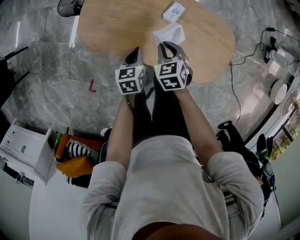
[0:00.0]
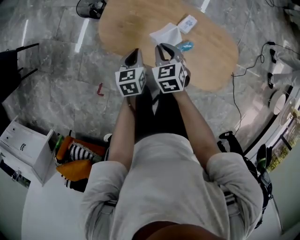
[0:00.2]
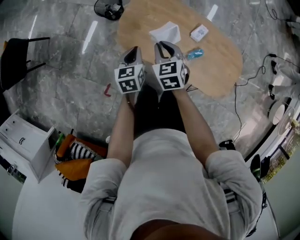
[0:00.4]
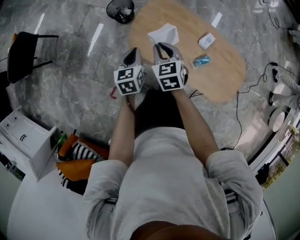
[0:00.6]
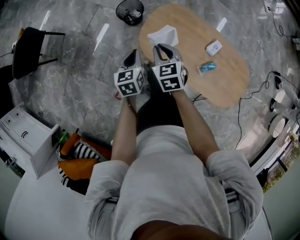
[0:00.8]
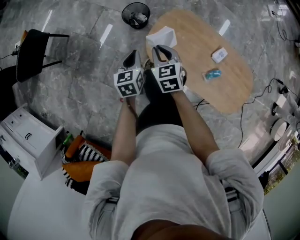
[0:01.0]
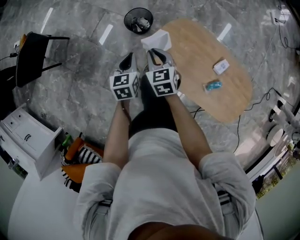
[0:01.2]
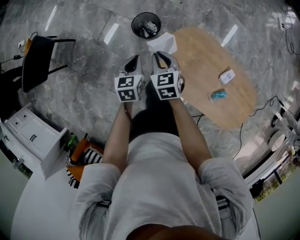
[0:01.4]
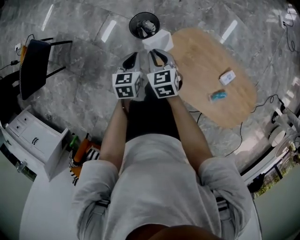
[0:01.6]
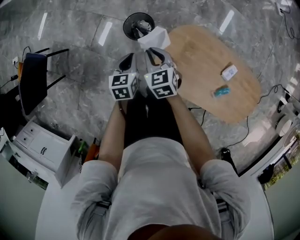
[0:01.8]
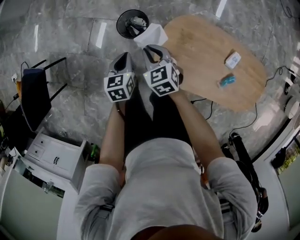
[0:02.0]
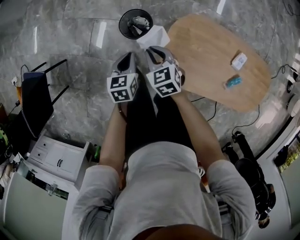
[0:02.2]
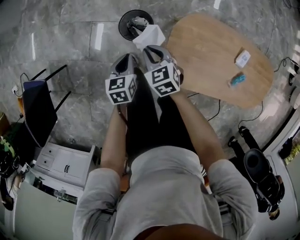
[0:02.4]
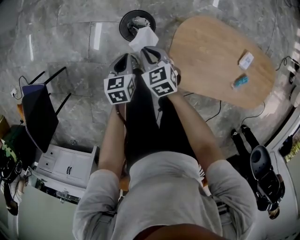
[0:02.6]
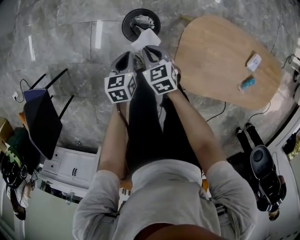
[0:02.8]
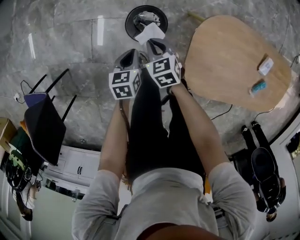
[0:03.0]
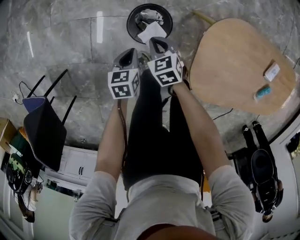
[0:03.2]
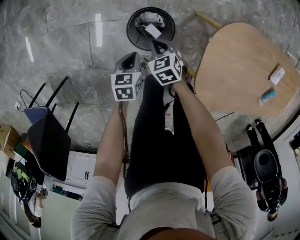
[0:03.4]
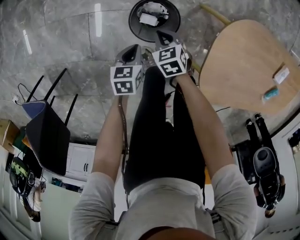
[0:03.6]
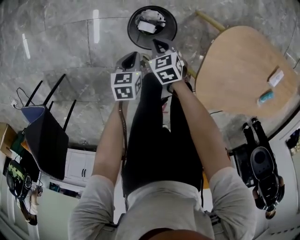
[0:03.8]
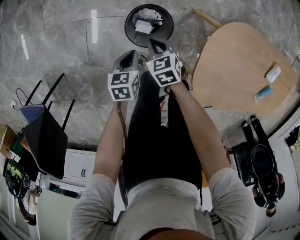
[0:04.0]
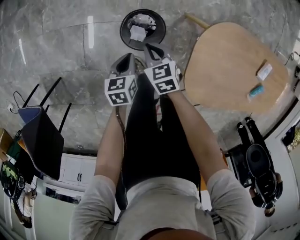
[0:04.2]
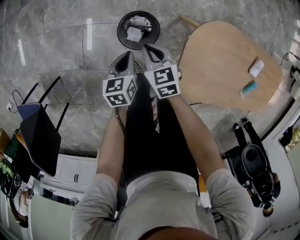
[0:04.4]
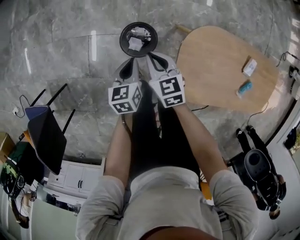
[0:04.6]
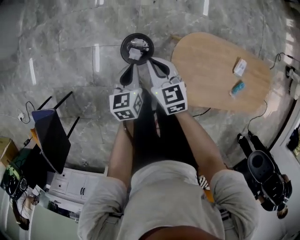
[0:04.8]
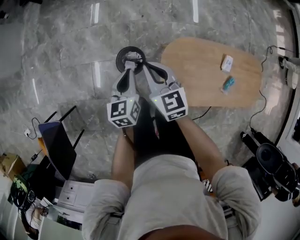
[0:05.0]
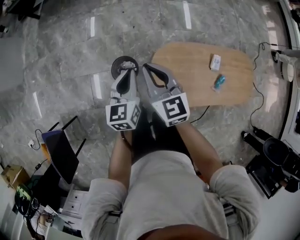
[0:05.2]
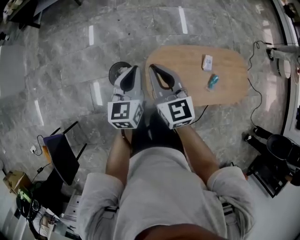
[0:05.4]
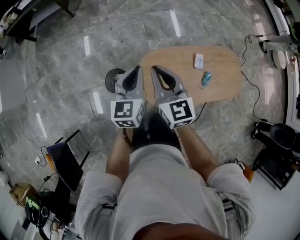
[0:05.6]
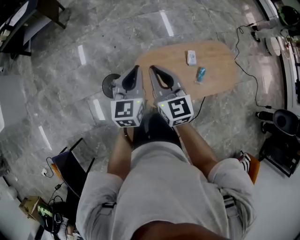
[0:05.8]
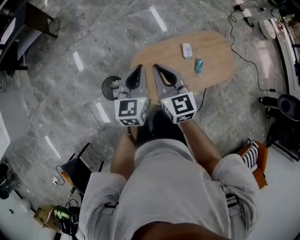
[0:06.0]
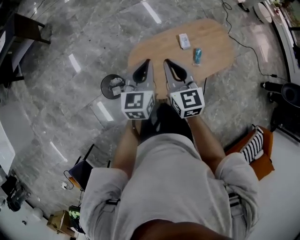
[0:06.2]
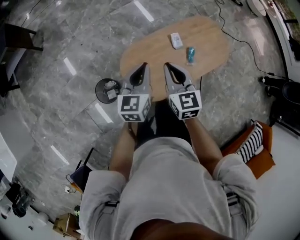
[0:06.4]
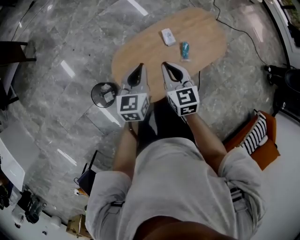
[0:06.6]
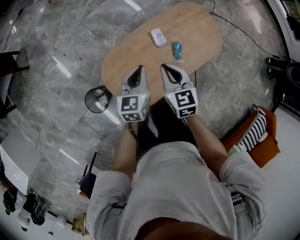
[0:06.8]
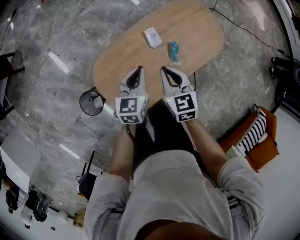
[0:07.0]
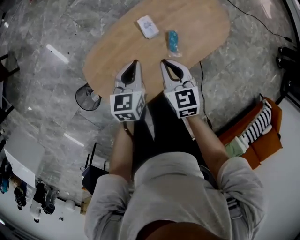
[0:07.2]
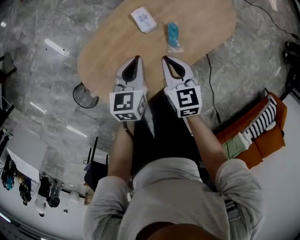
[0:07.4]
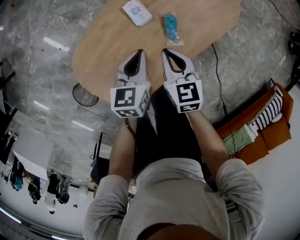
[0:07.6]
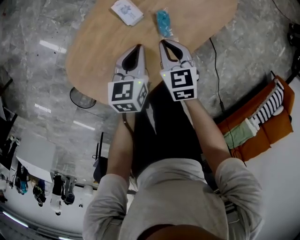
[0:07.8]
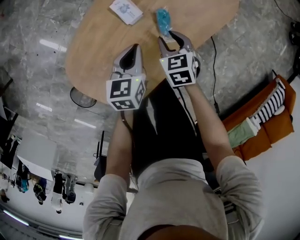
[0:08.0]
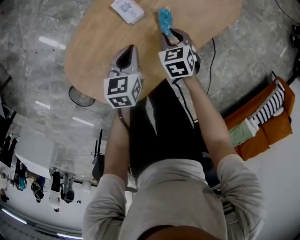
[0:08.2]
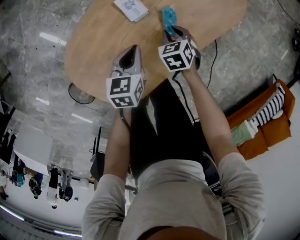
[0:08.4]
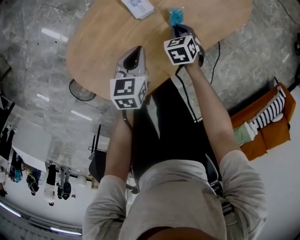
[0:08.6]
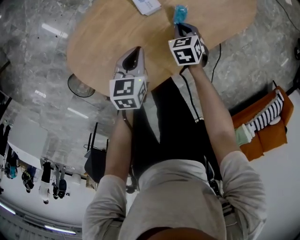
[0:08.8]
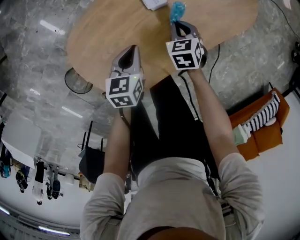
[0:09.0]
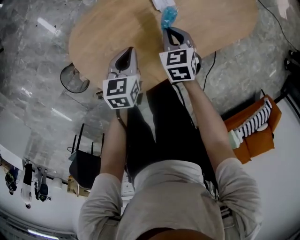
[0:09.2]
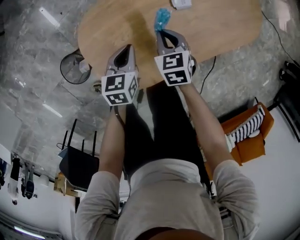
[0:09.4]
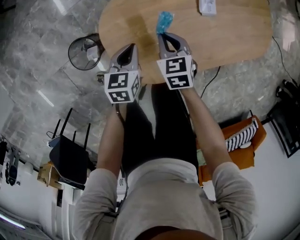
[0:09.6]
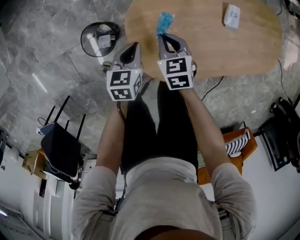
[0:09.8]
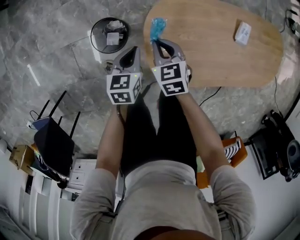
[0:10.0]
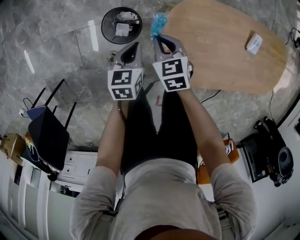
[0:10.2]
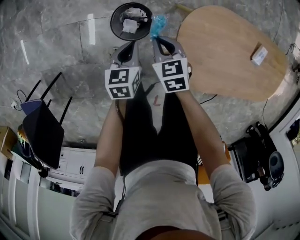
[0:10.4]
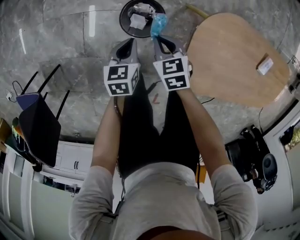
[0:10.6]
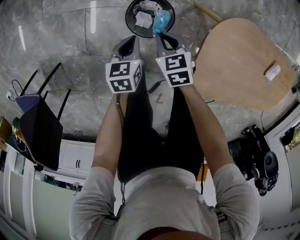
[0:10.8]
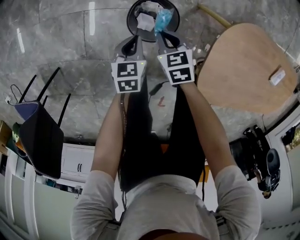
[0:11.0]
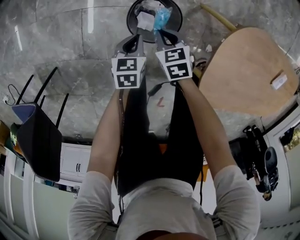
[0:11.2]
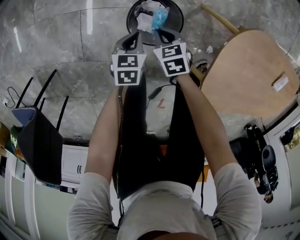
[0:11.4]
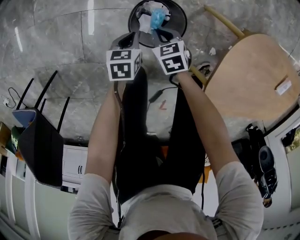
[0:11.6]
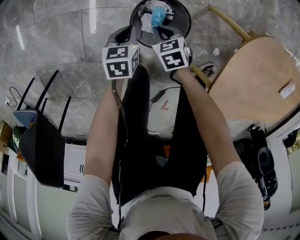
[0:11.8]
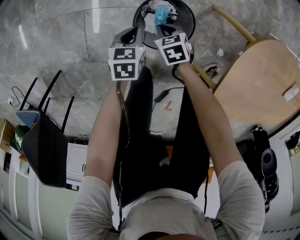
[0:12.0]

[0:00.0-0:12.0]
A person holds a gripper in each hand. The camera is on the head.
0:00.0 to 0:01.6: Both grippers are carried to the left and forward, about 50 cm.
0:01.6 to 0:03.0: Both grippers move downward and forward, roughly 30 cm. The left gripper rotates approximately 20 degrees.
0:03.0 to 0:04.4: The left gripper moves about 10 cm downward and comes back. Meanwhile the right gripper travels downward and back again, about 10 cm each way.
0:04.4 to 0:06.0: The grippers both shift upward by some 50 cm. The right gripper points its fingers some 30 degrees further upward. Meanwhile the left gripper points its fingers about 30 degrees further upward.
0:06.0 to 0:07.6: The left gripper changes place by roughly 50 cm, and swivels some 40 degrees. Meanwhile the right gripper goes about 35 cm downward, and changes its angle by some 40 degrees.
0:07.6 to 0:09.0: The right gripper is displaced downward by roughly 15 cm, turns by about 30 degrees, and opens, then closes again. The left gripper shifts roughly 10 cm downward, backward and to the left.
0:09.0 to 0:10.4: Both grippers are carried approximately 60 cm. The left gripper changes its angle by about 40 degrees, while the right gripper turns by some 50 degrees.
0:10.4 to 0:12.0: The right gripper moves downward, about 30 cm. The left gripper heads downward and to the left, covering about 25 cm.

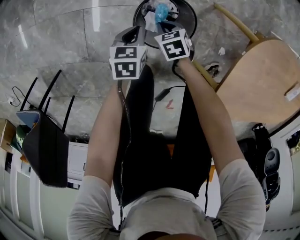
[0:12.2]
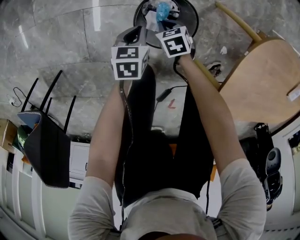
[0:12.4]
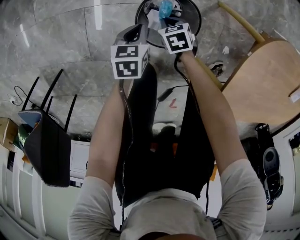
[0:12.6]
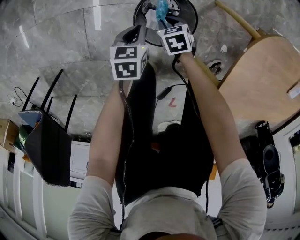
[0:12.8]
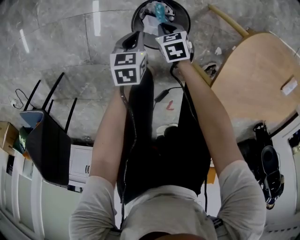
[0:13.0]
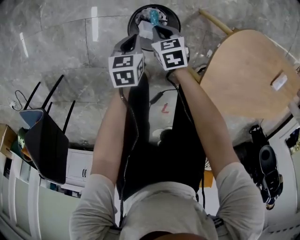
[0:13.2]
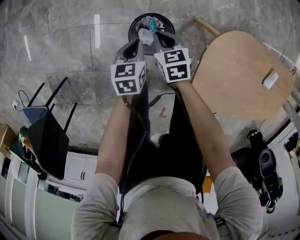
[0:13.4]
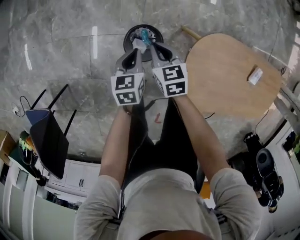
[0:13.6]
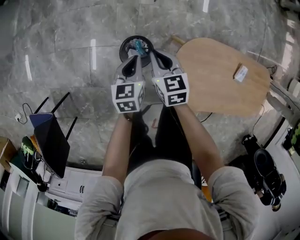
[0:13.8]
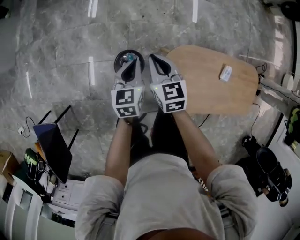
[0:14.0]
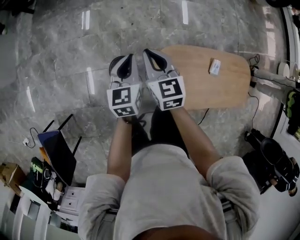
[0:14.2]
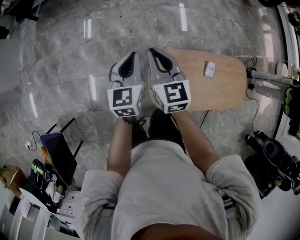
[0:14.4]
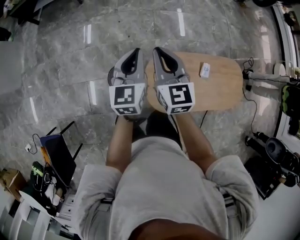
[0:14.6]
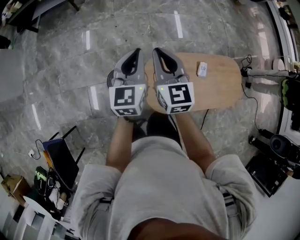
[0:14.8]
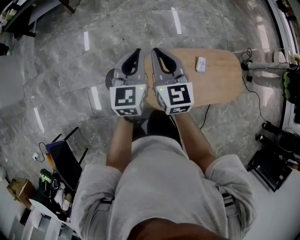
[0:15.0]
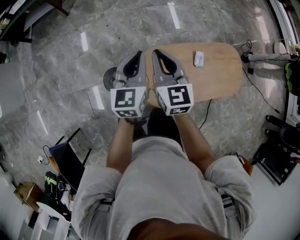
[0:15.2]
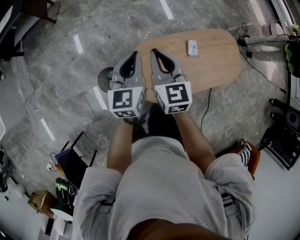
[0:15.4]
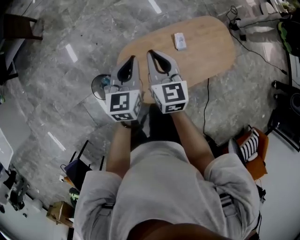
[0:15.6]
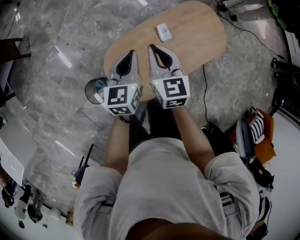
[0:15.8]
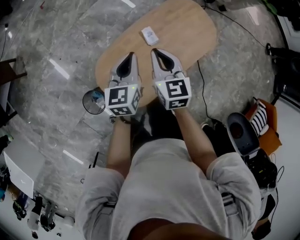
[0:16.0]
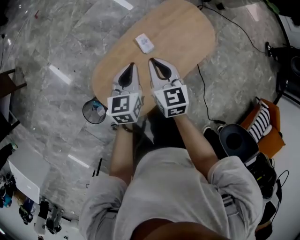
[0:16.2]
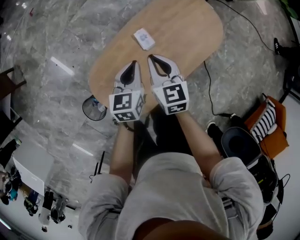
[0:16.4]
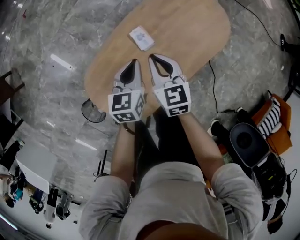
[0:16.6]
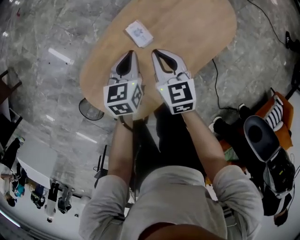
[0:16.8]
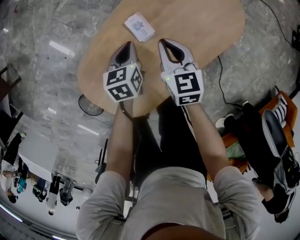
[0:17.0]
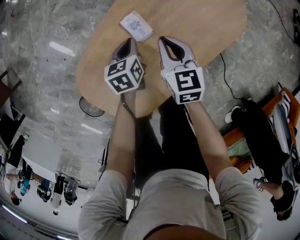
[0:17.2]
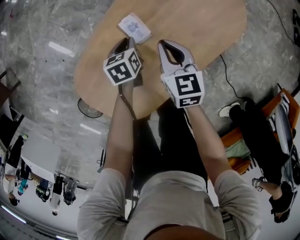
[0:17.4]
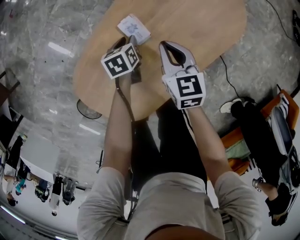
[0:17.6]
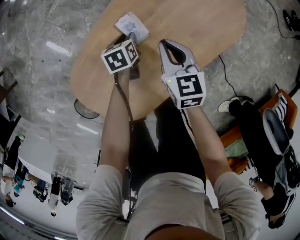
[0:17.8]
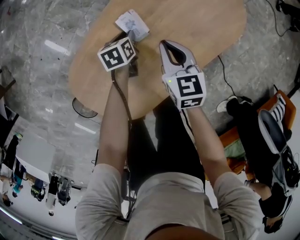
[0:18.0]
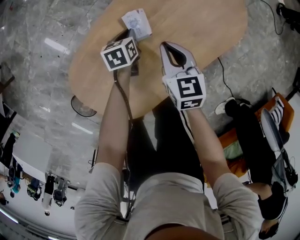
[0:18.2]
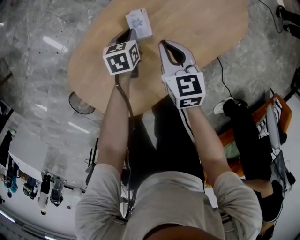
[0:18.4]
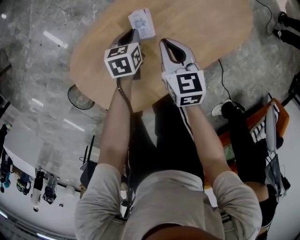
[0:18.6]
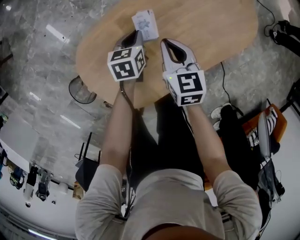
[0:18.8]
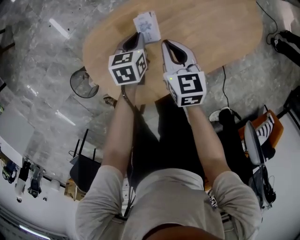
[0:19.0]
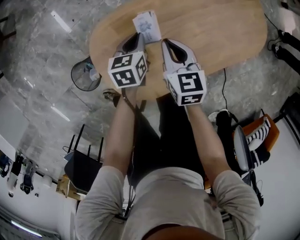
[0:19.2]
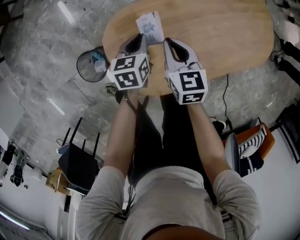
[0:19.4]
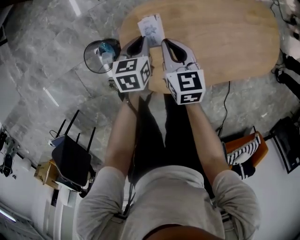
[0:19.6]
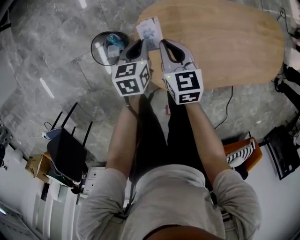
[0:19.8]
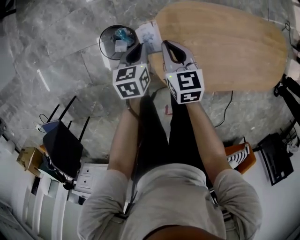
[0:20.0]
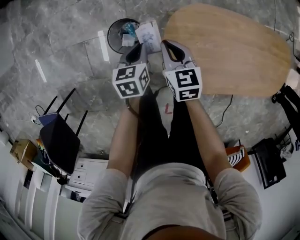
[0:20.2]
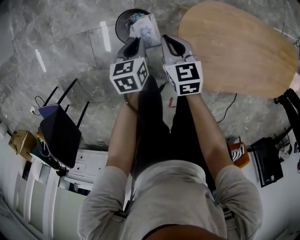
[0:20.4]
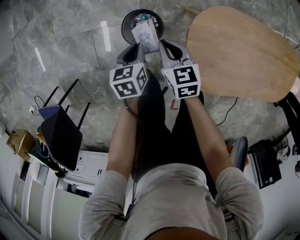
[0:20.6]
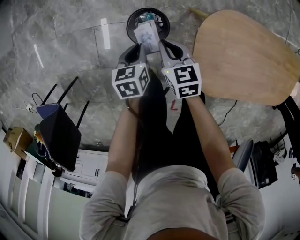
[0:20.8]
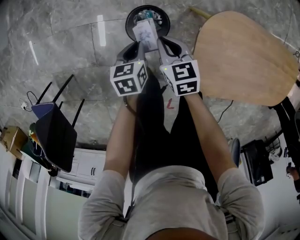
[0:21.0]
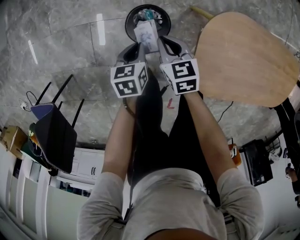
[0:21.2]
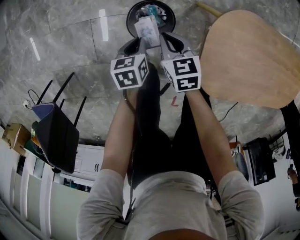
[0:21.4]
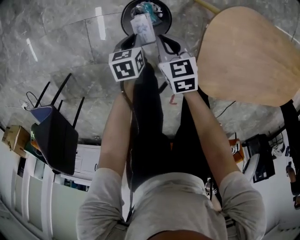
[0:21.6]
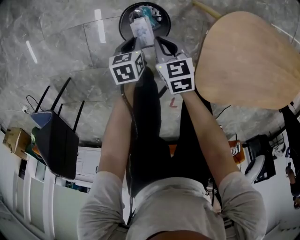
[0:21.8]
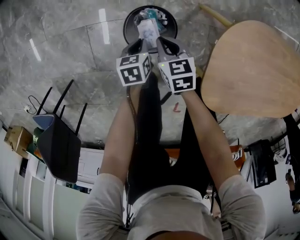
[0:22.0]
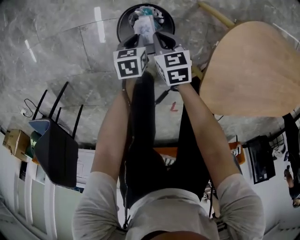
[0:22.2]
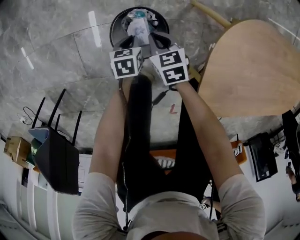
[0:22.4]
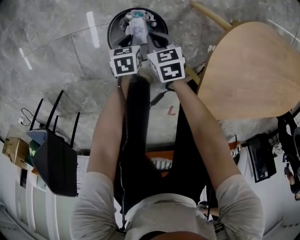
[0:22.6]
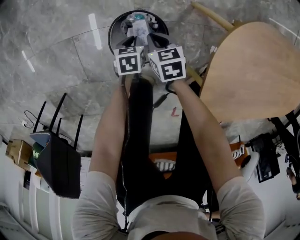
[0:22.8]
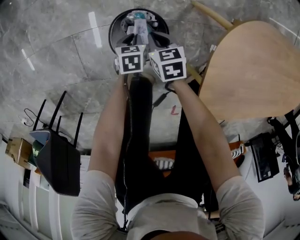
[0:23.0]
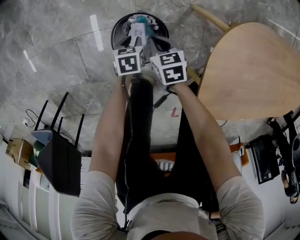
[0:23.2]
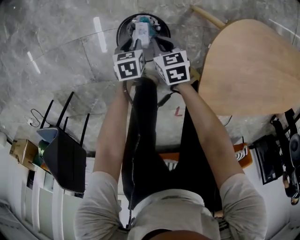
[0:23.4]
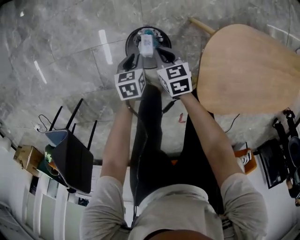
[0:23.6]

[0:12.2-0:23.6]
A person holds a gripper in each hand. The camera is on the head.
0:12.2 to 0:13.6: The grippers both shift upward by some 30 cm. The right gripper rotates roughly 20 degrees.
0:13.6 to 0:15.0: Both grippers move upward and to the right, about 50 cm. The left gripper tips its fingers upward by some 30 degrees. Meanwhile the right gripper points its fingers about 30 degrees further upward.
0:15.0 to 0:16.4: Both grippers are carried roughly 40 cm. The left gripper rotates about 40 degrees. Meanwhile the right gripper turns by approximately 40 degrees.
0:16.4 to 0:17.8: The right gripper travels downward and to the right by roughly 20 cm. The left gripper moves downward, about 30 cm, rotates approximately 30 degrees, and opens up.
0:17.8 to 0:19.4: The right gripper goes approximately 30 cm to the left and backward, and rotates approximately 20 degrees, while the left gripper shifts roughly 30 cm to the left, backward and upward, rotates approximately 20 degrees, and closes.
0:19.4 to 0:20.8: Both grippers are carried roughly 40 cm. The right gripper turns by about 30 degrees. The left gripper rotates roughly 30 degrees.
0:20.8 to 0:22.2: The two grippers go roughly 20 cm downward.
0:22.2 to 0:23.6: The two grippers go roughly 10 cm upward.
